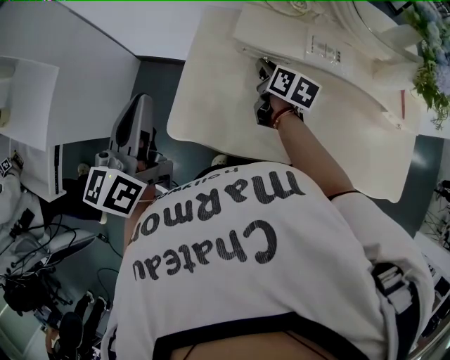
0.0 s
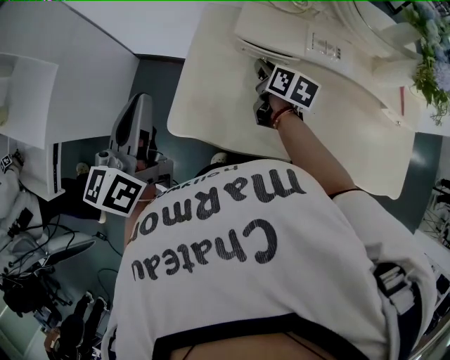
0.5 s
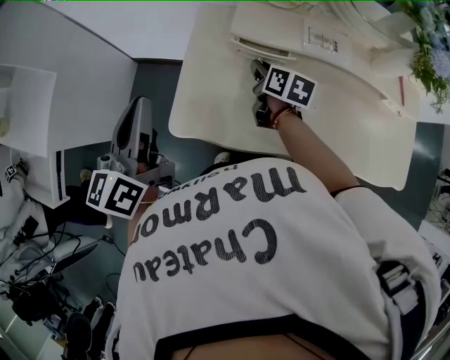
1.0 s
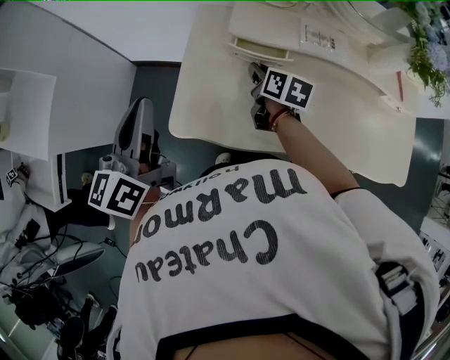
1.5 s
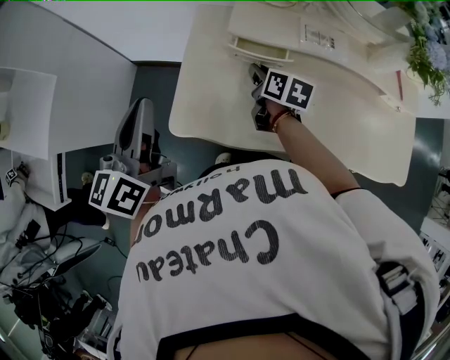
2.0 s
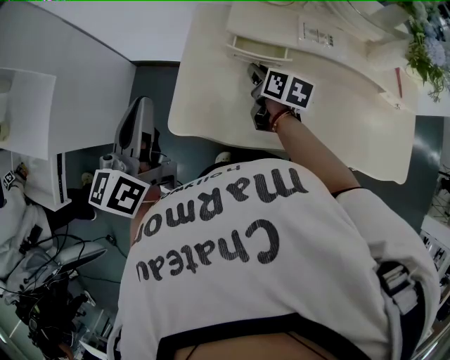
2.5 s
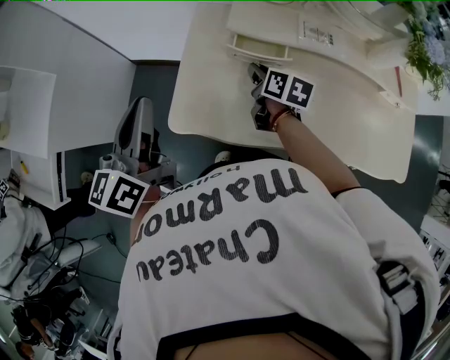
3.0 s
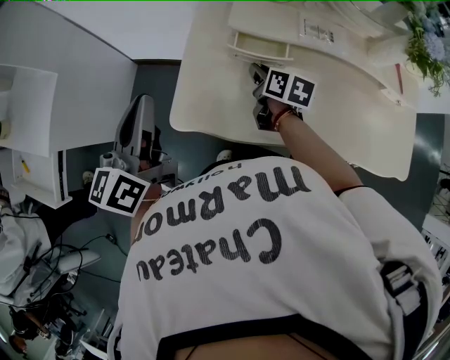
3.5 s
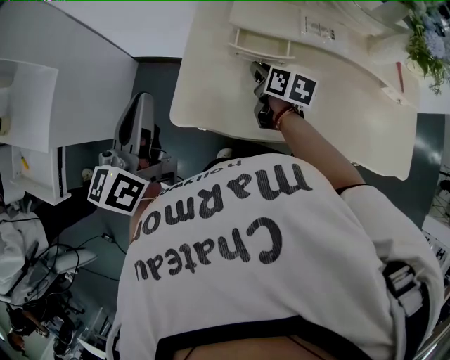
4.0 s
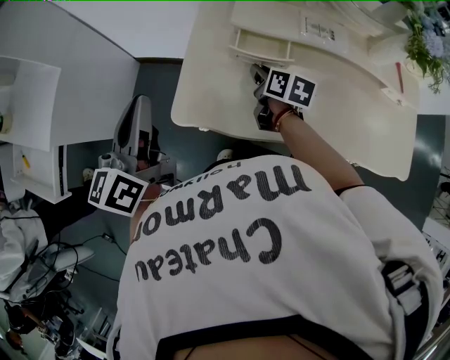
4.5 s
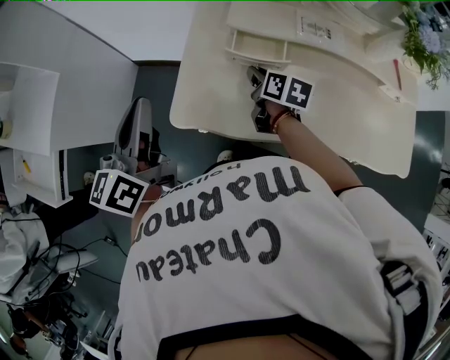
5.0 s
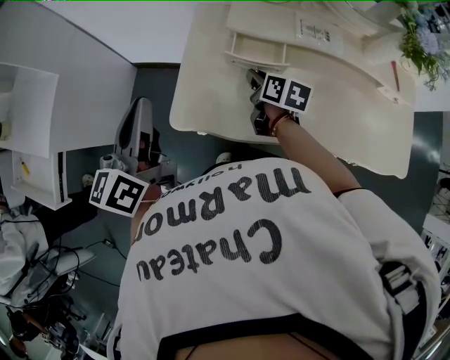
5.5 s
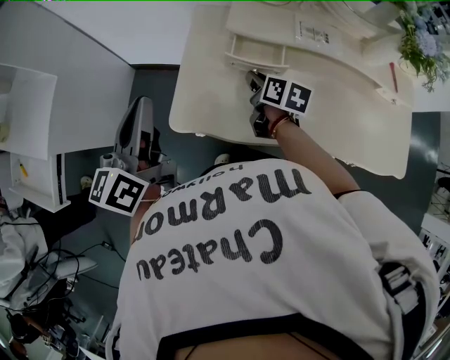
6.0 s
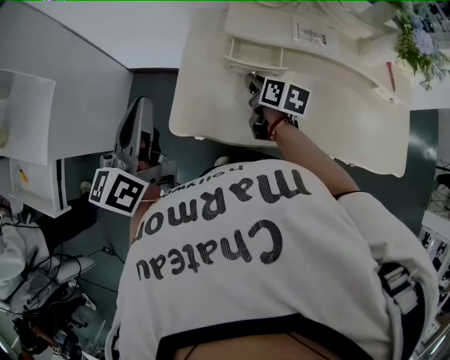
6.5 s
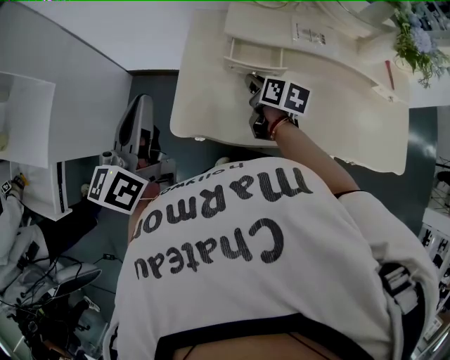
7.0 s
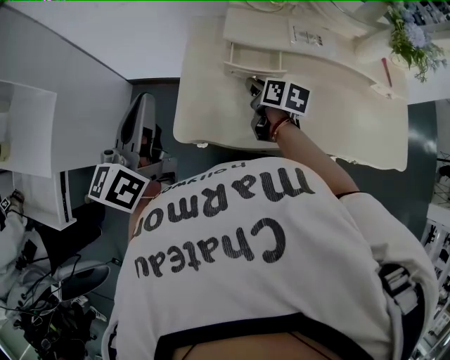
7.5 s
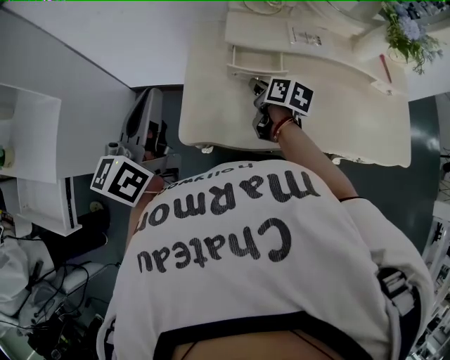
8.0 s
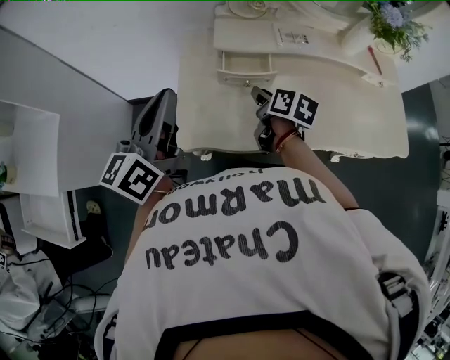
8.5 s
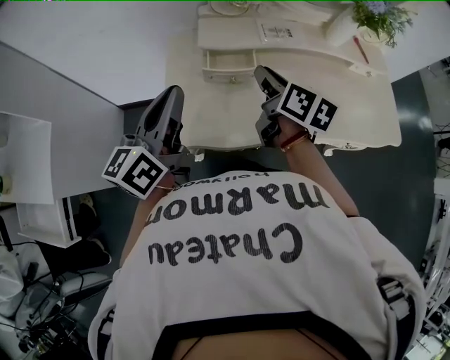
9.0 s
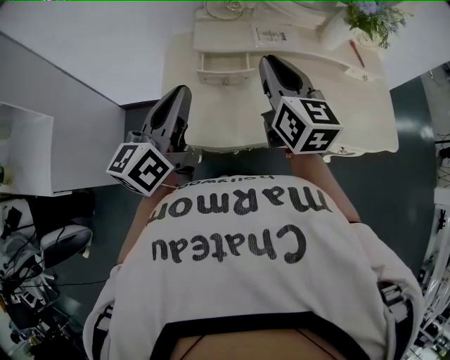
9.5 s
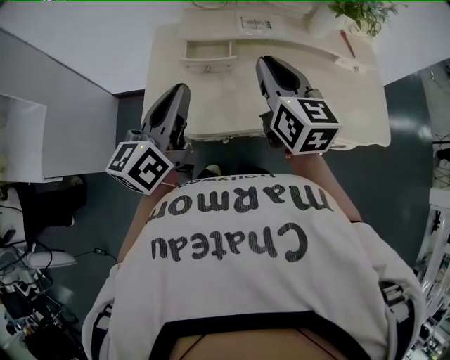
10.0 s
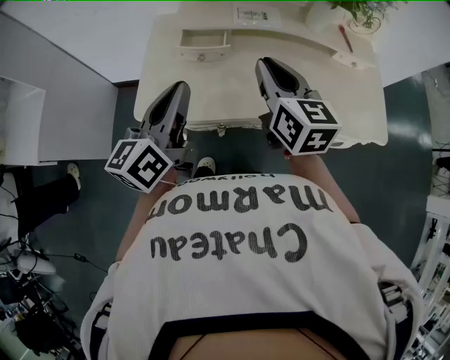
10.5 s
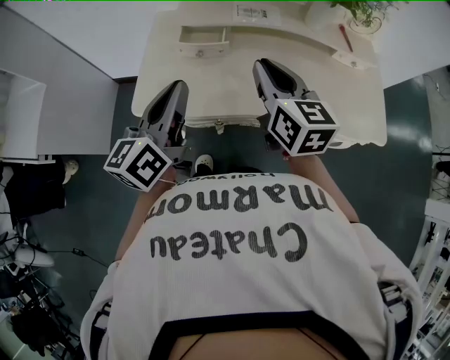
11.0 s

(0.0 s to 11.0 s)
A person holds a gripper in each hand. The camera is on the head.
0.0 s - 3.5 s: The grippers stay close to where they were, moving slightly.
3.5 s - 7.5 s: The grippers move only a little.
7.5 s - 9.0 s: The right gripper goes about 15 cm upward and to the right, and swivels about 20 degrees, while the left gripper moves to the right, approximately 10 cm.
9.0 s - 11.0 s: The right gripper heads to the right, backward and upward, covering approximately 15 cm, and turns by some 30 degrees. Meanwhile the left gripper heads to the right and backward, covering about 15 cm.

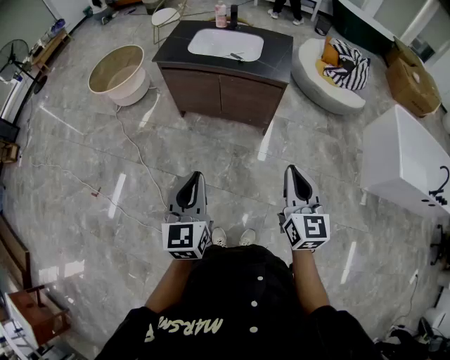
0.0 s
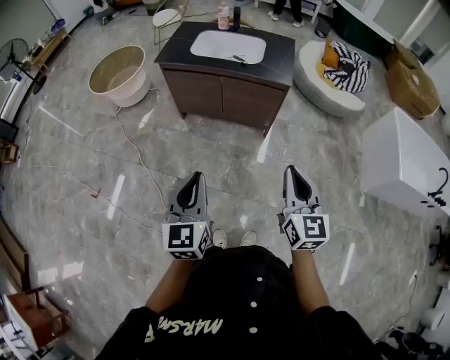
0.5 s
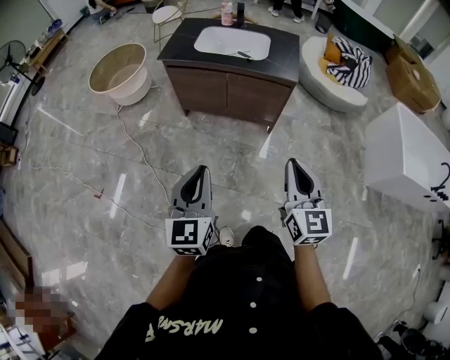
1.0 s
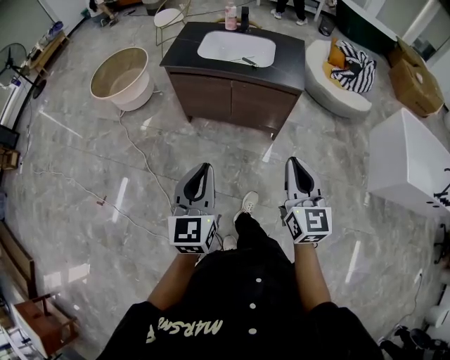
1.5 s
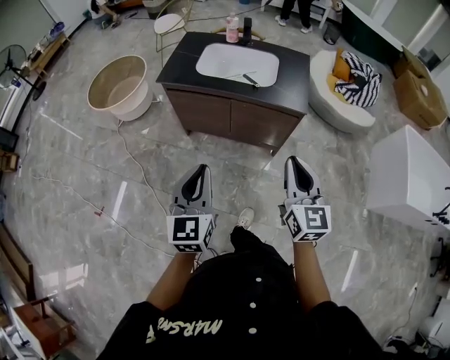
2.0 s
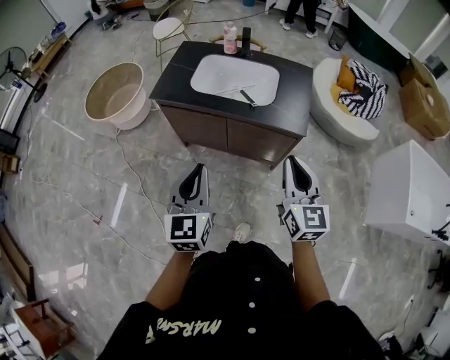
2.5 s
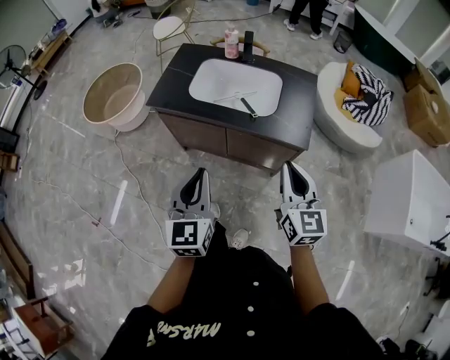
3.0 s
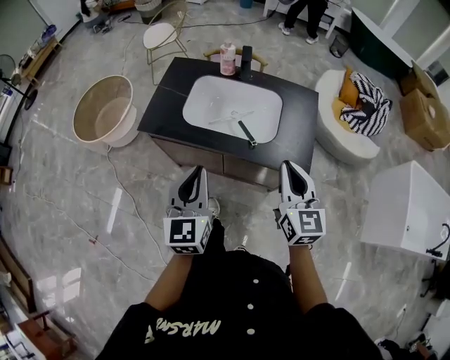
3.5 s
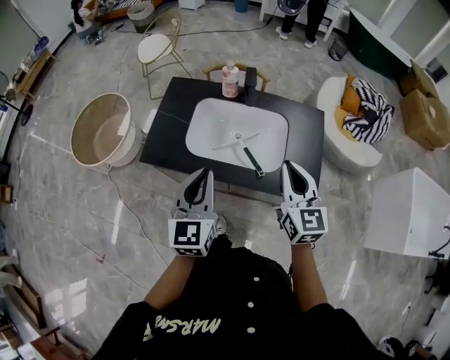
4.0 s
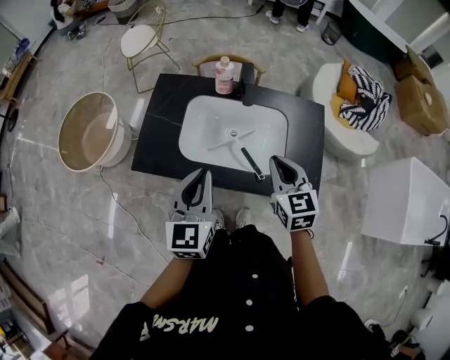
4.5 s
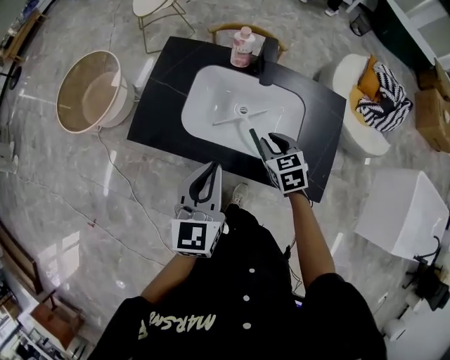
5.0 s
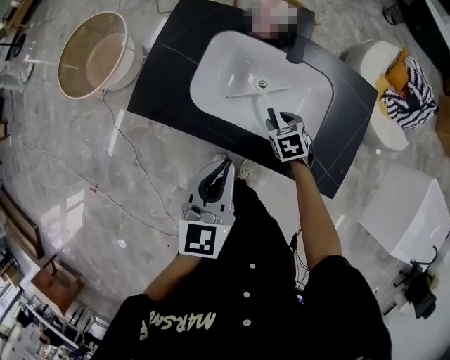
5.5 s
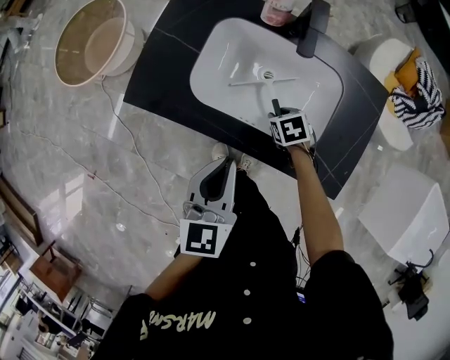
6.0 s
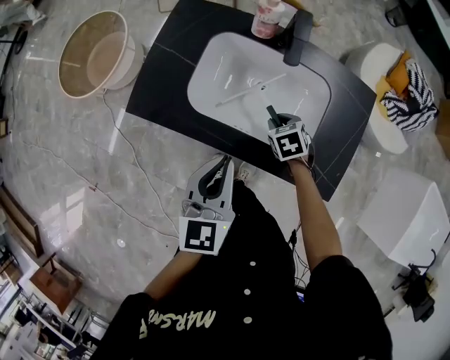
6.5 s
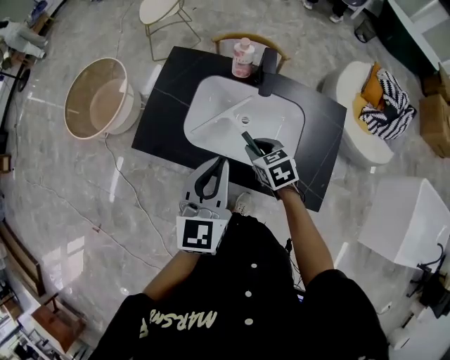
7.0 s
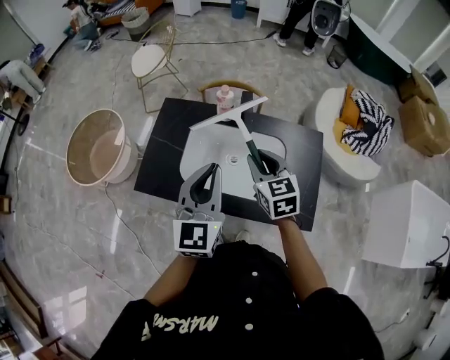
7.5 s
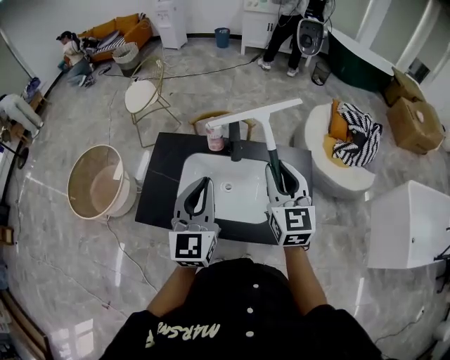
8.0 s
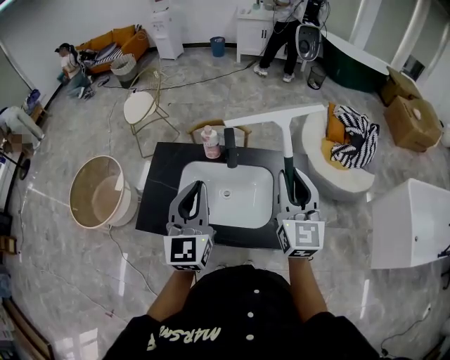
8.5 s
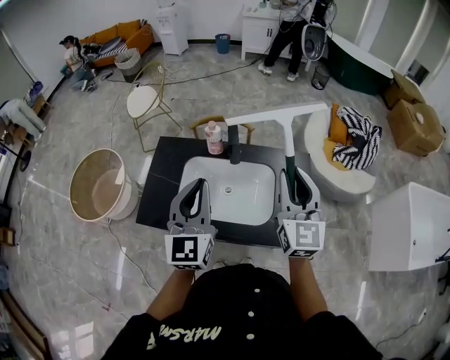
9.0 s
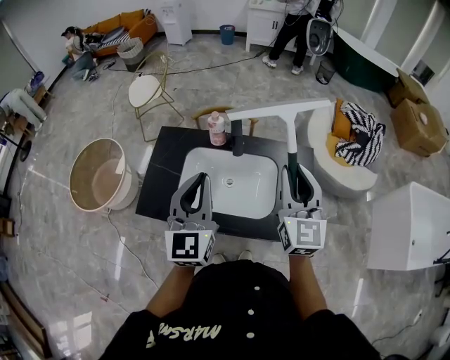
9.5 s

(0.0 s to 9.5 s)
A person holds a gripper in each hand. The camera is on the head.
0.0 s - 2.0 s: The two grippers go roughly 20 cm forward.
2.0 s - 4.0 s: The pair of grippers is taken forward, some 40 cm.
4.0 s - 5.5 s: The left gripper shifts roughly 10 cm downward, while the right gripper is displaced downward and forward by about 40 cm, points its fingers about 50 degrees further downward, and opens.
5.5 s - 7.5 s: The right gripper heads upward, covering approximately 30 cm, and angles its fingers upward, by some 40 degrees, while the left gripper moves upward and forward, approximately 15 cm, and turns by roughly 20 degrees.
7.5 s - 9.5 s: The right gripper heads upward and to the right, covering about 20 cm, and swivels roughly 40 degrees. Meanwhile the left gripper shifts by about 5 cm.

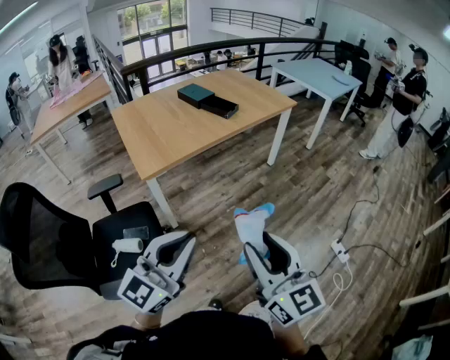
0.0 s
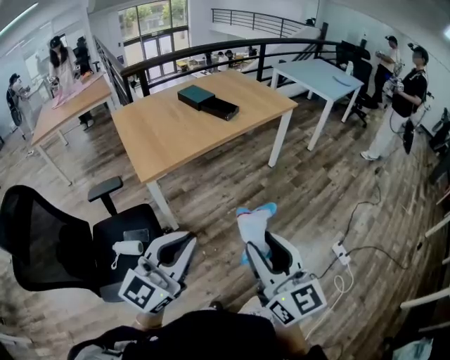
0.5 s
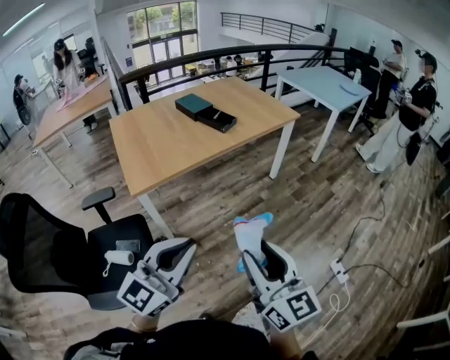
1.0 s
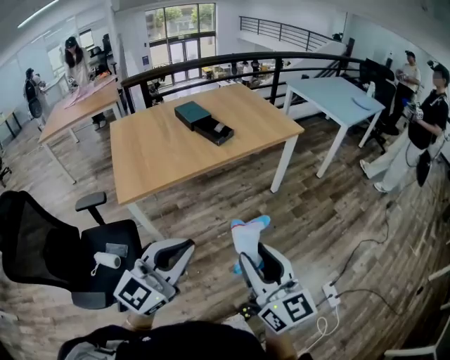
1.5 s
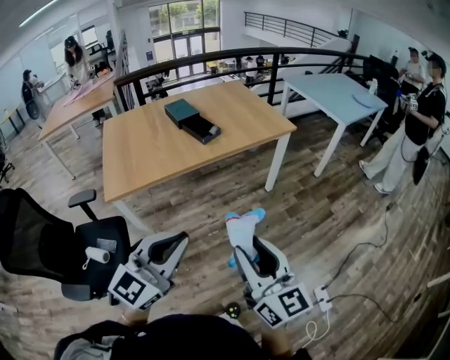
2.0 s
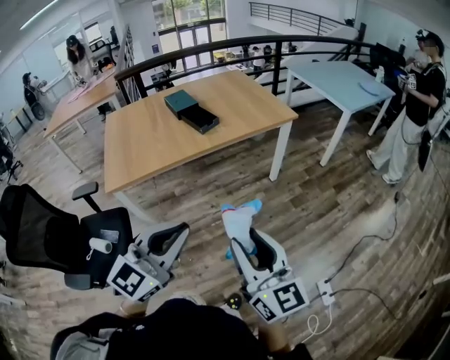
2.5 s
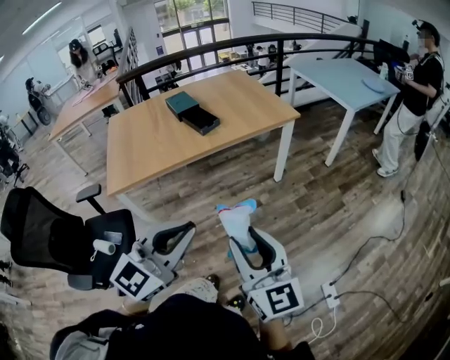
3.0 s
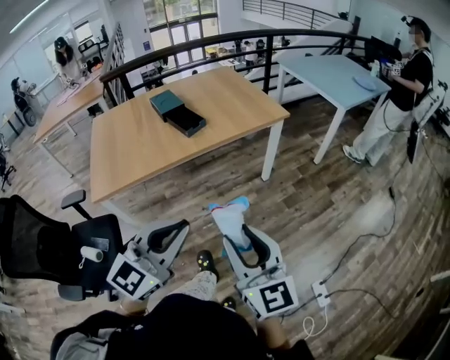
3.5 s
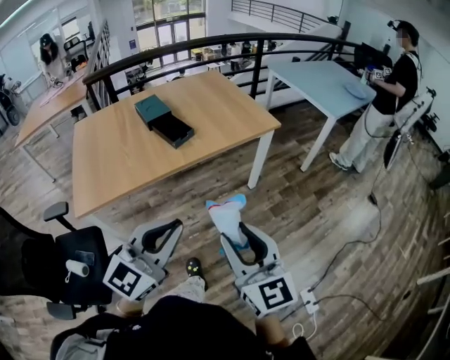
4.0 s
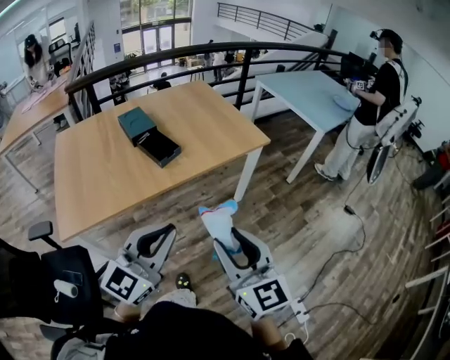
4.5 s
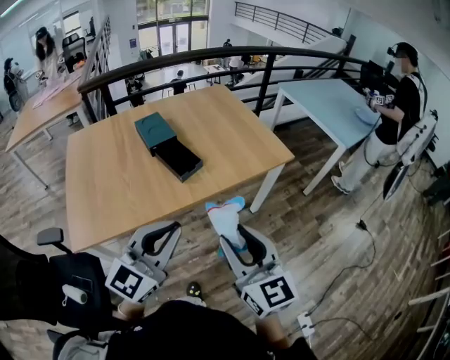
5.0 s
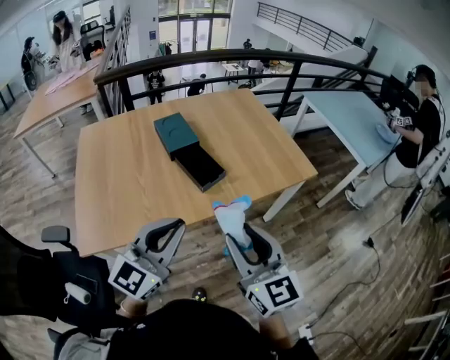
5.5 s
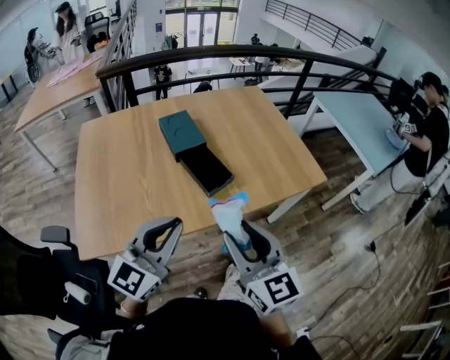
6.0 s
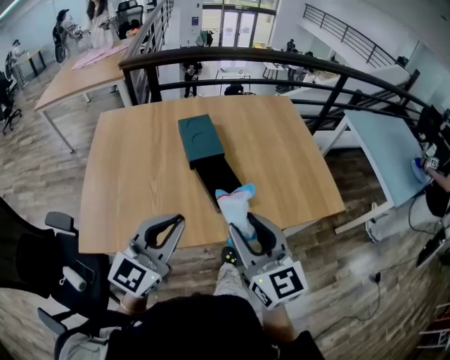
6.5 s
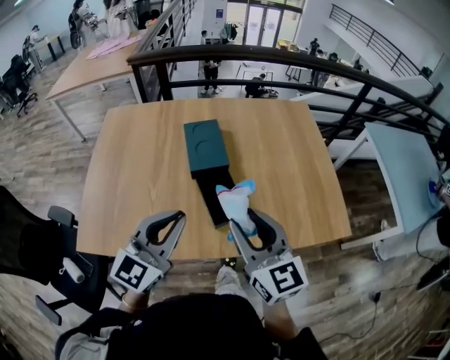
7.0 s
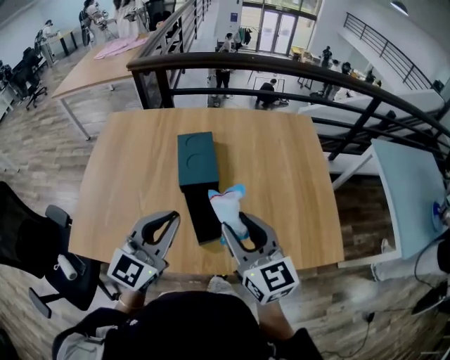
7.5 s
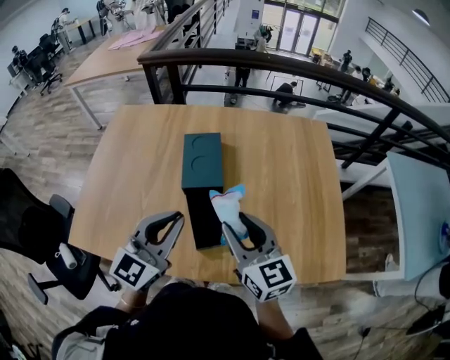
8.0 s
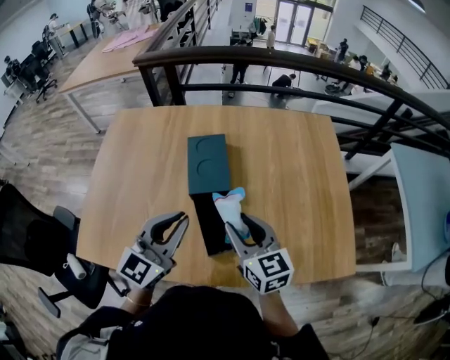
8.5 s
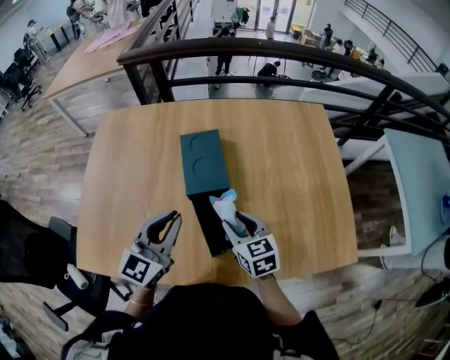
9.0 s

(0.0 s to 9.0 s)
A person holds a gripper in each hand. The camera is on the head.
0.0 s - 2.0 s: The two grippers go some 35 cm to the right and forward.
2.0 s - 4.5 s: The two grippers go roughly 25 cm forward.
4.5 s - 7.0 s: The two grippers travel together, some 40 cm. The left gripper changes its angle by roughly 30 degrees. The right gripper rotates about 30 degrees.
7.0 s - 9.0 s: The right gripper shifts about 25 cm downward and forward, and rotates some 30 degrees, while the left gripper is displaced forward and downward by some 15 cm.
